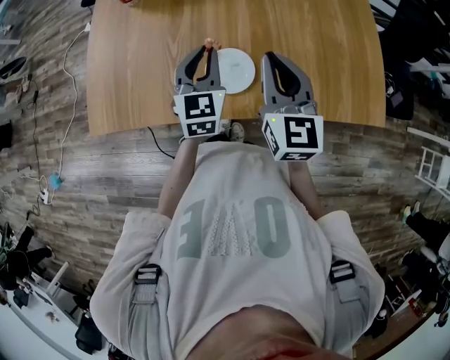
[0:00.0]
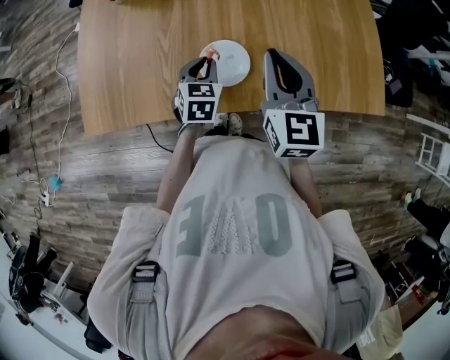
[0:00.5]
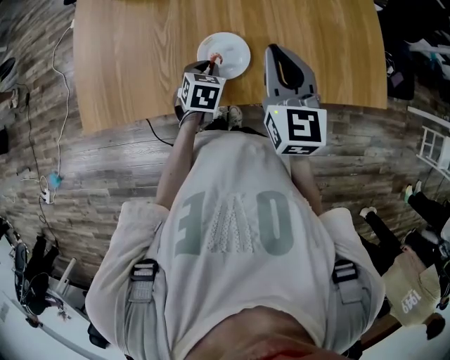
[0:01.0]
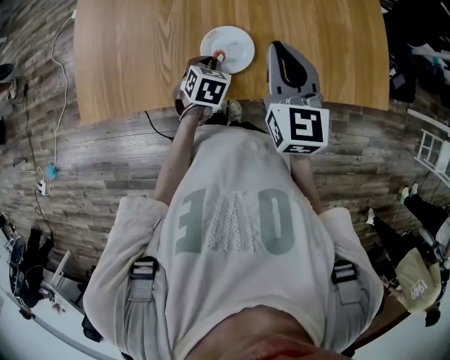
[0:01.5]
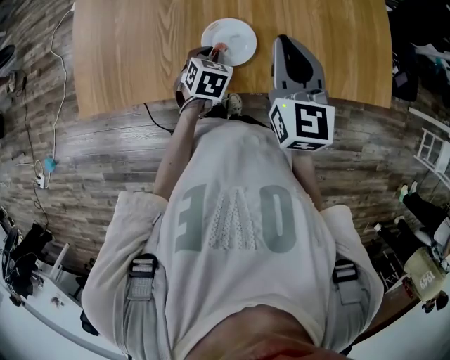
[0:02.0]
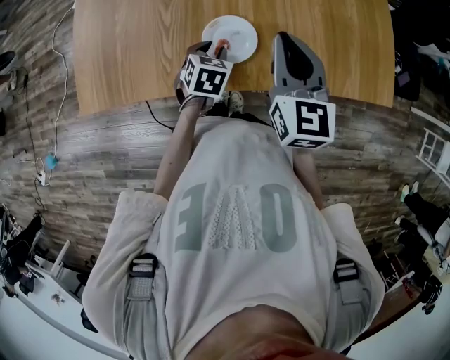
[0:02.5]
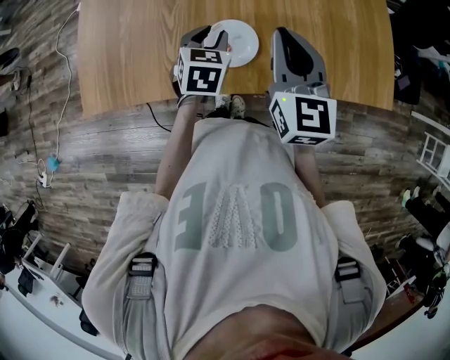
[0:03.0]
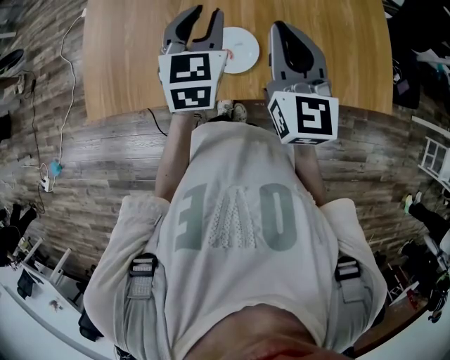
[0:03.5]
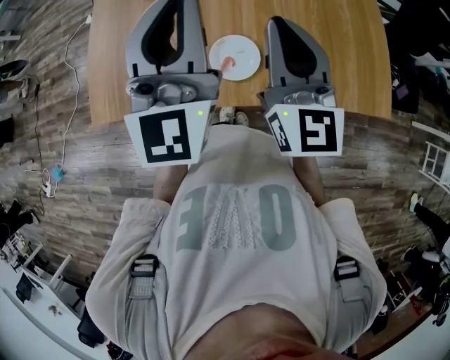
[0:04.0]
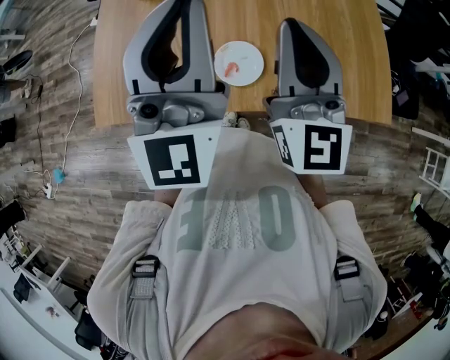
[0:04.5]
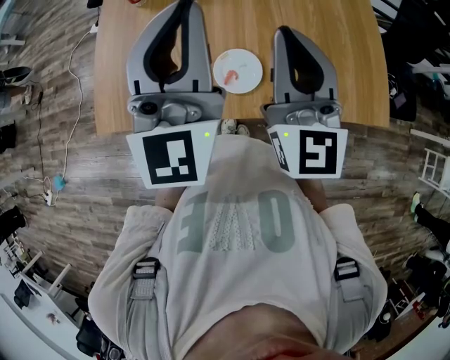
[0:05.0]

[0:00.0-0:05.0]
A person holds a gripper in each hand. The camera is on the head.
0.0 to 2.5 s: The left gripper goes about 15 cm downward, and points its fingers approximately 40 degrees further downward.
2.5 to 5.0 s: The right gripper moves upward, some 15 cm, and changes its angle by about 20 degrees; the left gripper moves upward, roughly 40 cm, tilts its fingers roughly 70 degrees upward, and closes its fingers.

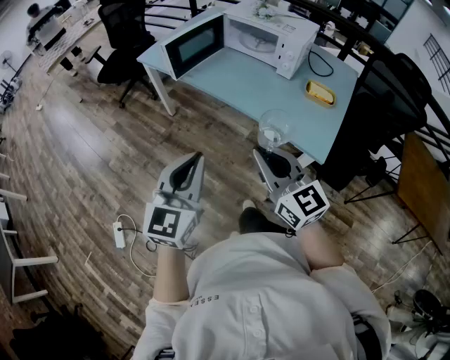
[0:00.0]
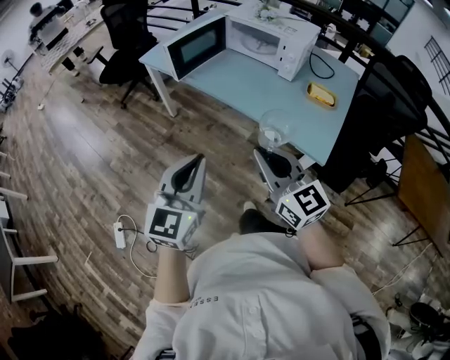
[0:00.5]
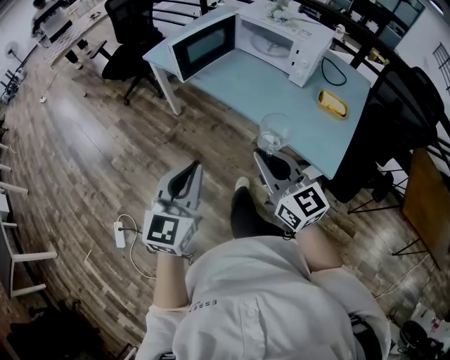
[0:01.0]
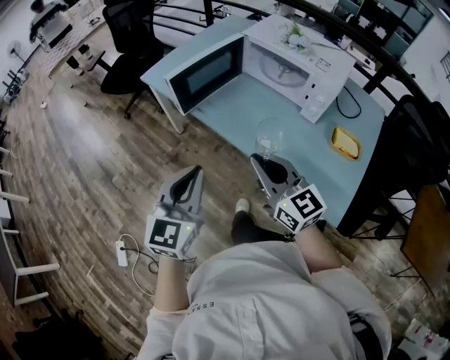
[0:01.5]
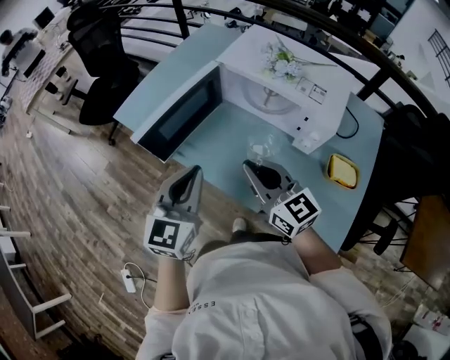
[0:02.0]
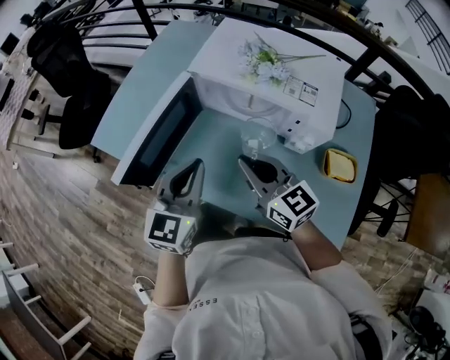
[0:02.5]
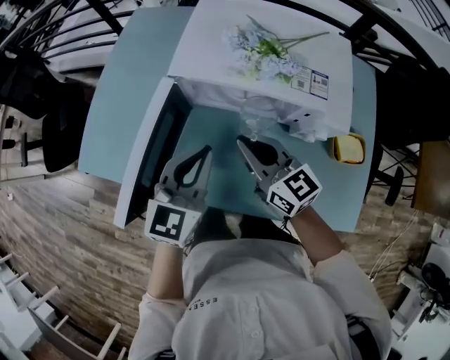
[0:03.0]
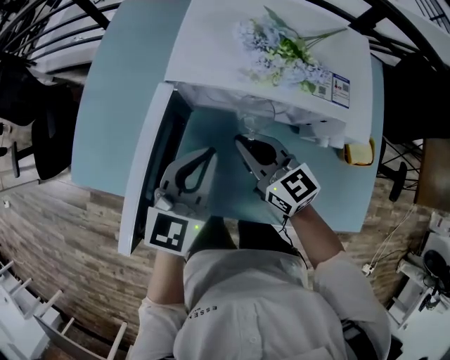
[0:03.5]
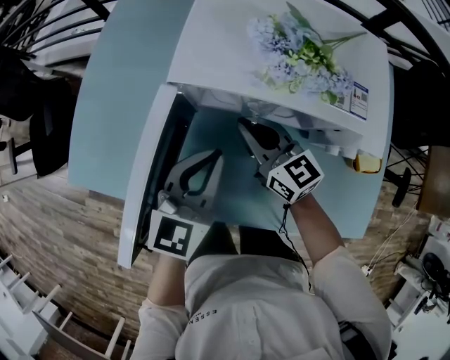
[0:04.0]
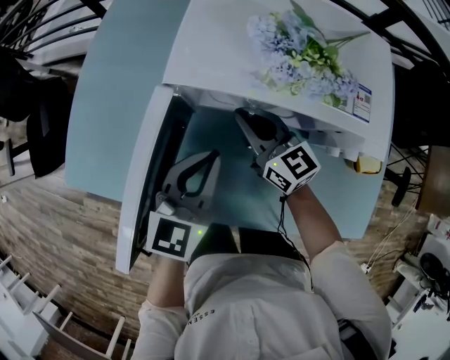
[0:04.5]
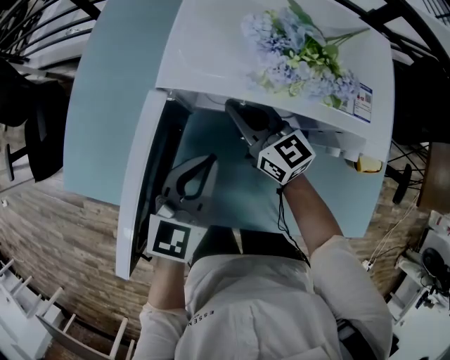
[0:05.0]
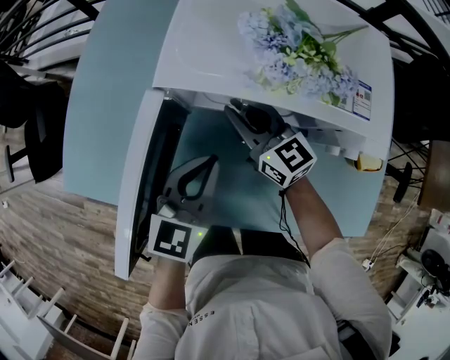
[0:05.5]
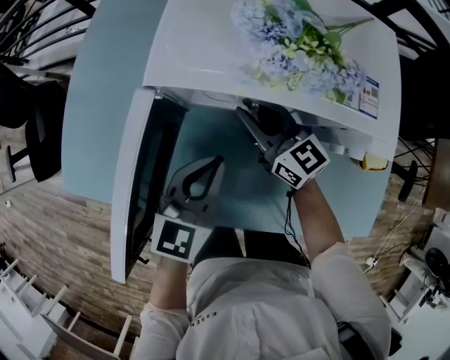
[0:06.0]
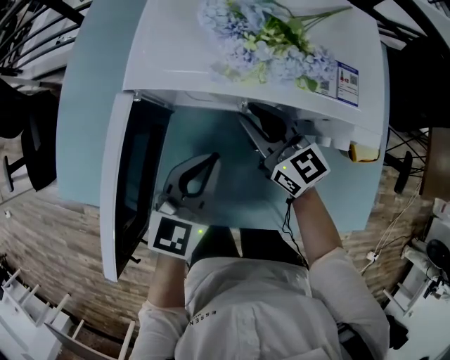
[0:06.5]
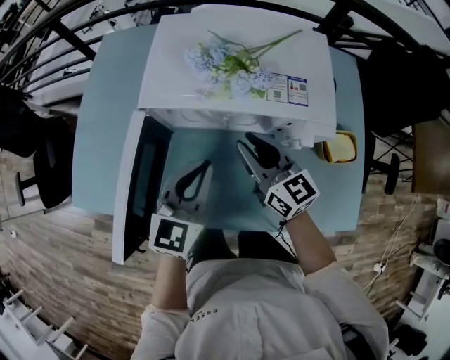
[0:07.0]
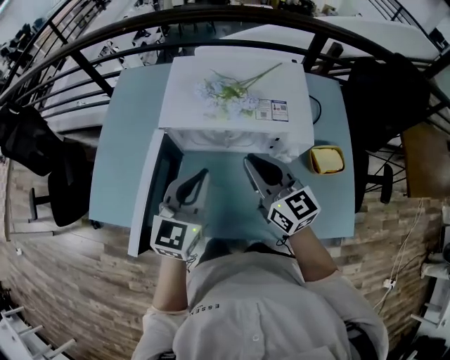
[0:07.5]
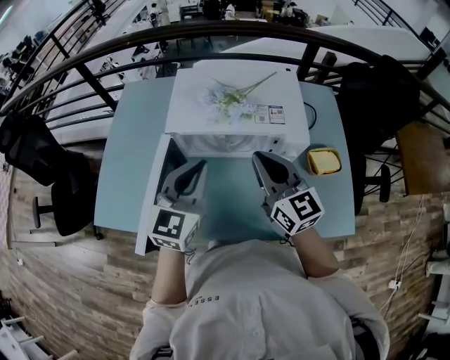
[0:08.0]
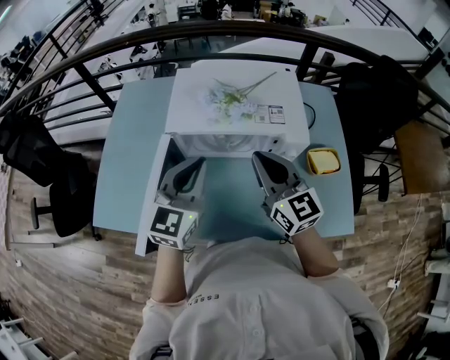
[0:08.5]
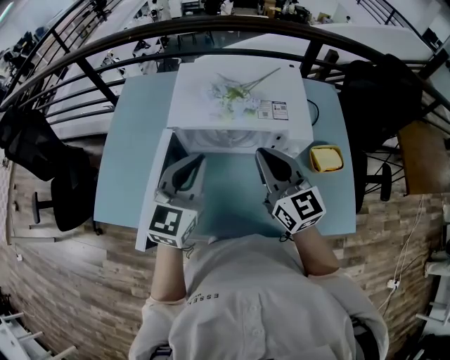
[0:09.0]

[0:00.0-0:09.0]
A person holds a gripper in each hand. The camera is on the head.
0.0 to 2.0 s: The two grippers travel together, forward, about 40 cm.
2.0 to 4.5 s: The grippers both shift forward and downward by about 30 cm. The right gripper changes its angle by roughly 20 degrees; the left gripper swivels roughly 30 degrees.
4.5 to 7.0 s: The left gripper is displaced to the right by approximately 5 cm, while the right gripper shifts roughly 15 cm to the right, backward and upward.
7.0 to 9.0 s: The left gripper shifts some 10 cm upward. Meanwhile the right gripper shifts about 15 cm upward and backward.

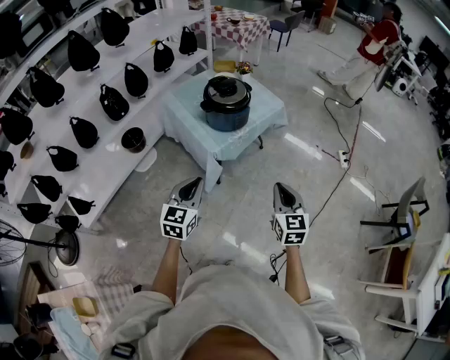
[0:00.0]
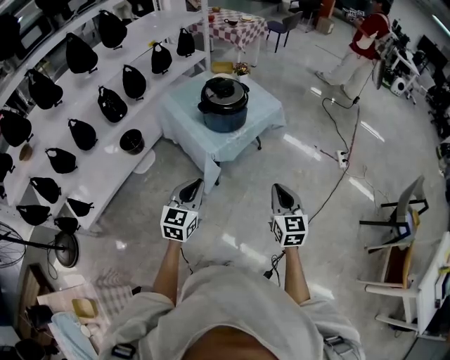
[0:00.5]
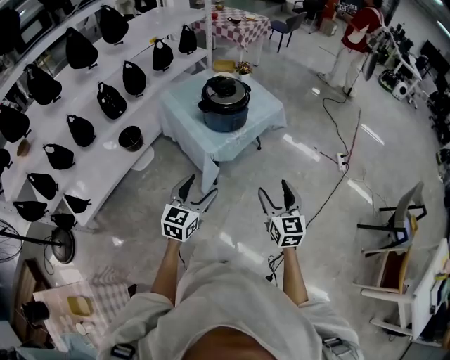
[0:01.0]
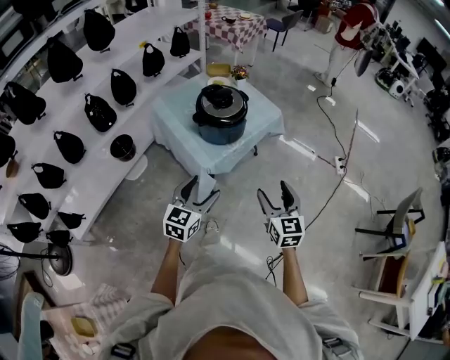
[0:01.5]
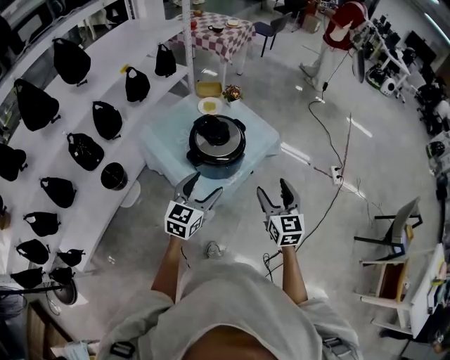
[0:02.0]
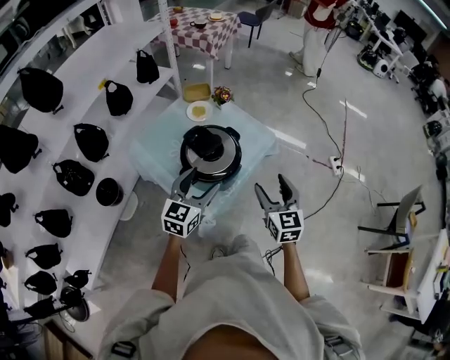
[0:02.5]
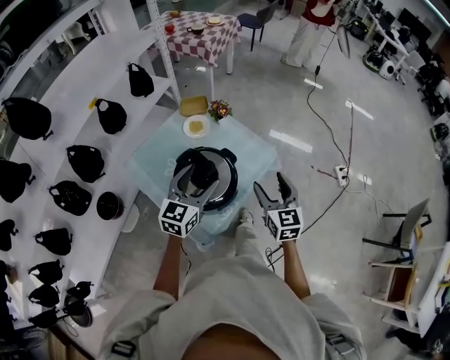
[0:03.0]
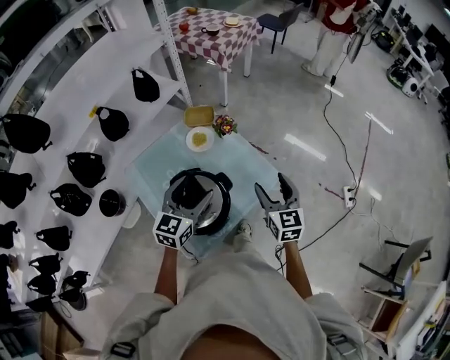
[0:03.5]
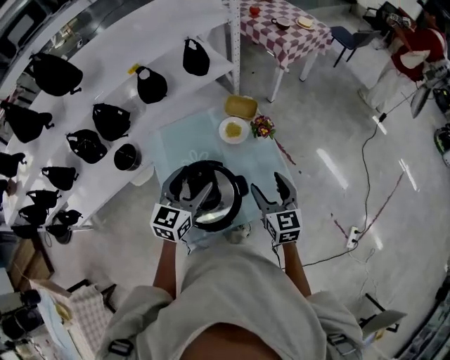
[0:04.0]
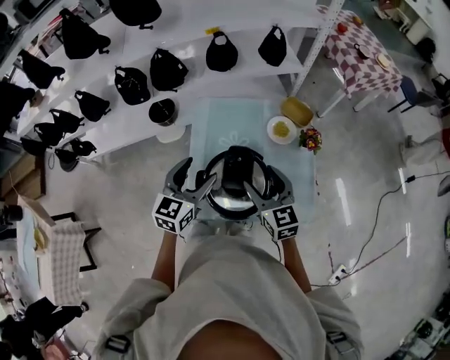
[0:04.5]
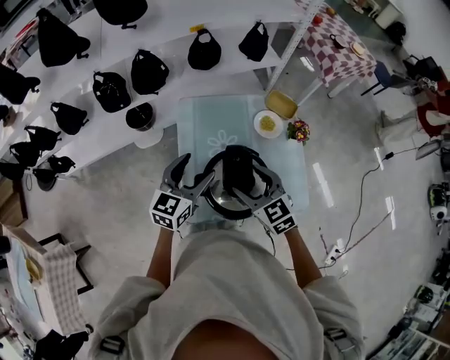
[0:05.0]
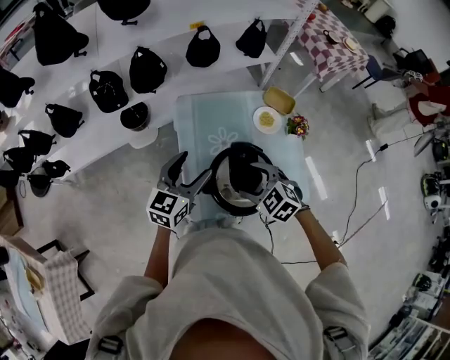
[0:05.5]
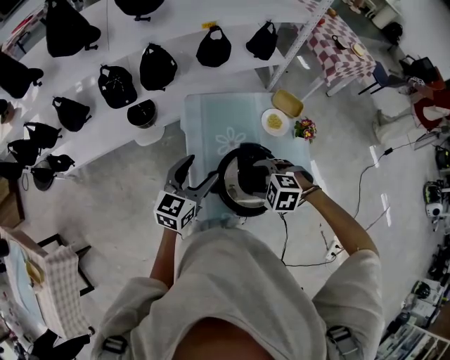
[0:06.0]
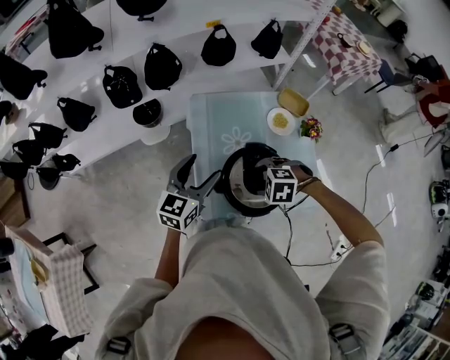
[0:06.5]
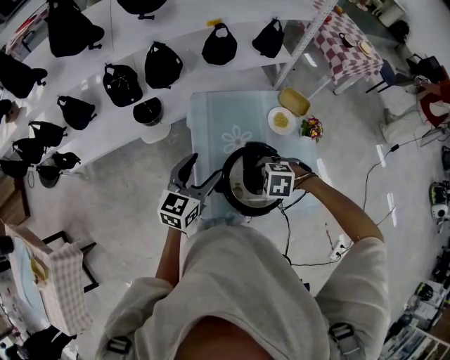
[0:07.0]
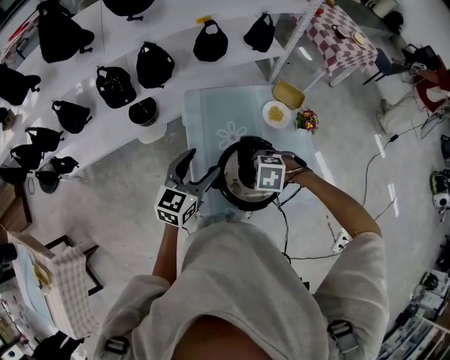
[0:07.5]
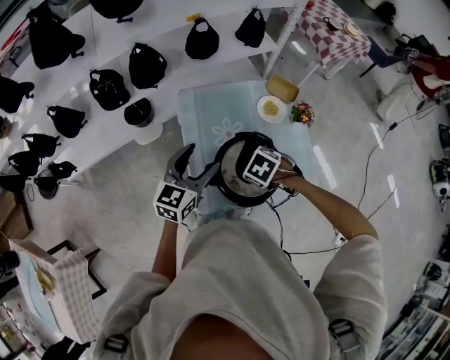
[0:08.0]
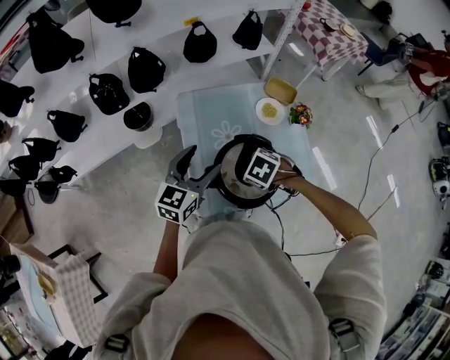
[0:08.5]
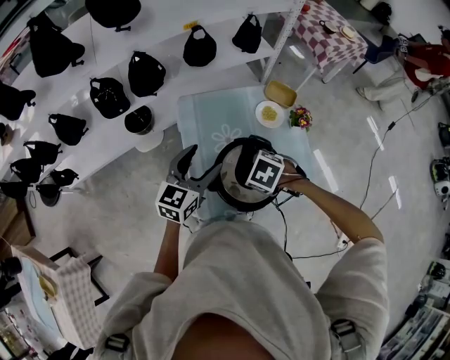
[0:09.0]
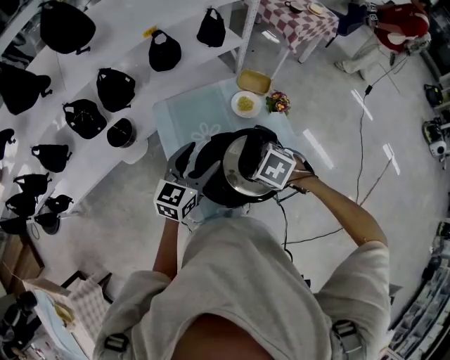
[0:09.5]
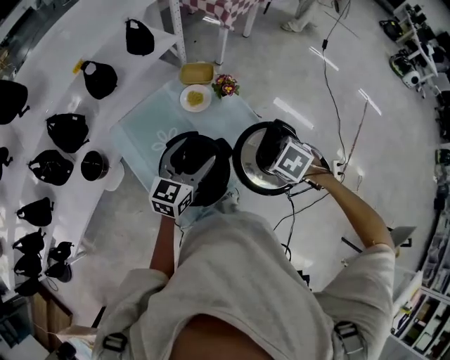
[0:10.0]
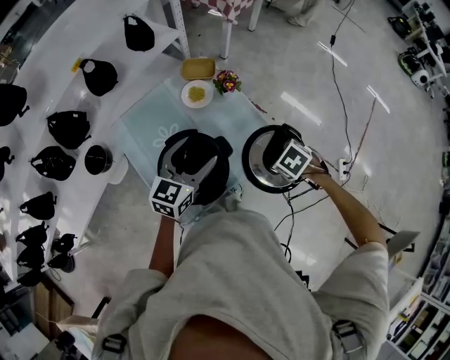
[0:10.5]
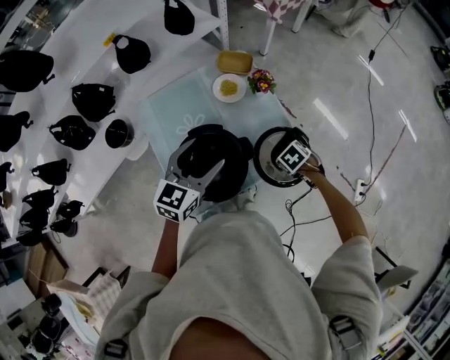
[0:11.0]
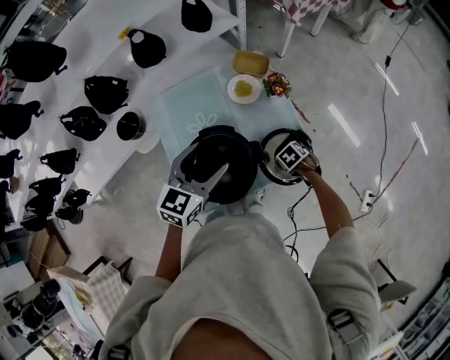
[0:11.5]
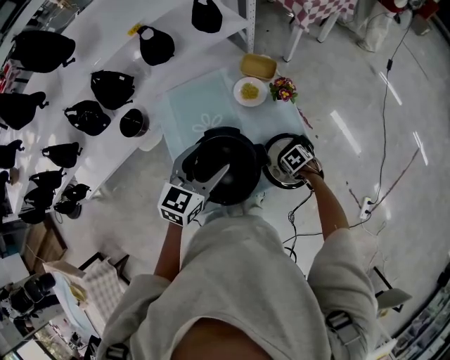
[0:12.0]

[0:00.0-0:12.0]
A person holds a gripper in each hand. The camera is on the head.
0.0 to 2.0 s: Both grippers move forward, some 30 cm. The right gripper opens. The left gripper opens its fingers.
2.0 to 4.0 s: The left gripper changes place by approximately 35 cm, and changes its angle by approximately 30 degrees; the right gripper shifts by some 40 cm, and rotates approximately 30 degrees.
4.0 to 6.0 s: The right gripper ends up roughly 25 cm from where it was, and points its fingers some 50 degrees further downward; the left gripper ends up some 20 cm from where it was.
6.0 to 8.0 s: The right gripper turns by approximately 30 degrees.
8.0 to 10.0 s: The right gripper changes place by about 25 cm, and swivels roughly 30 degrees, while the left gripper ends up some 20 cm from where it was, and turns by about 30 degrees.
10.0 to 12.0 s: The right gripper shifts some 25 cm downward.

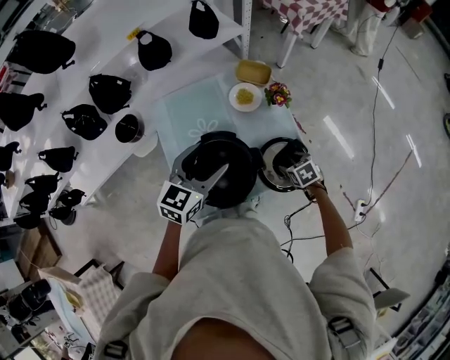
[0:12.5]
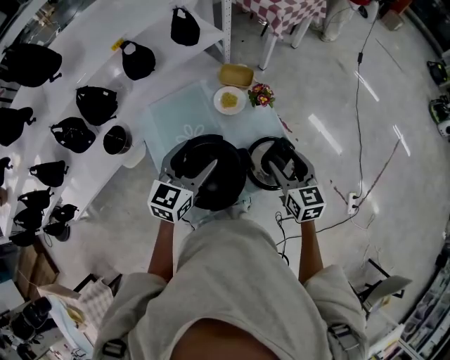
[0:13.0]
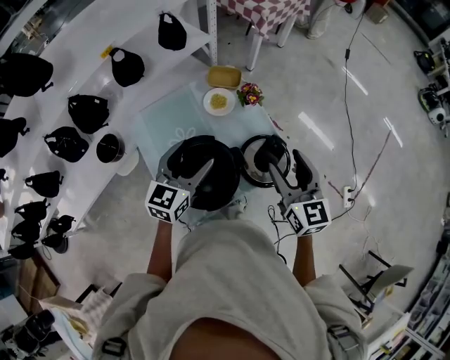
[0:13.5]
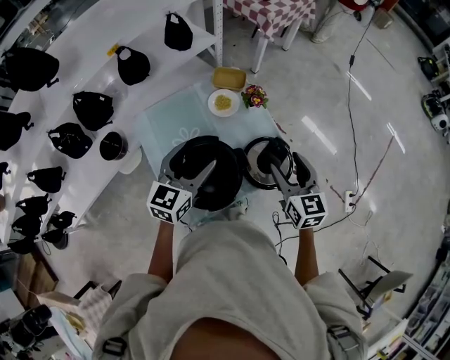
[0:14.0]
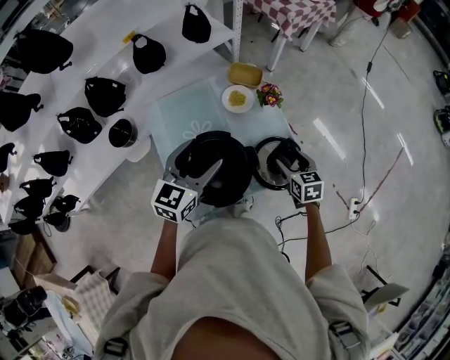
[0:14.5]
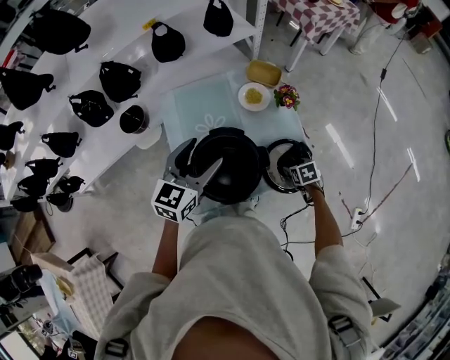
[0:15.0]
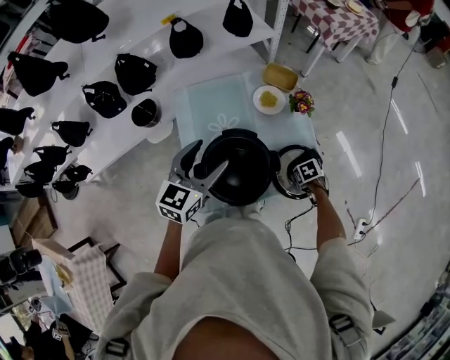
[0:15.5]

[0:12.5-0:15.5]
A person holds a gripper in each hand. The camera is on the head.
12.5 to 14.0 s: The right gripper is displaced upward by approximately 25 cm, and tips its fingers upward by approximately 50 degrees.
14.0 to 15.5 s: The right gripper is displaced downward by about 30 cm, and angles its fingers downward, by some 60 degrees. Meanwhile the left gripper changes place by approximately 5 cm.
